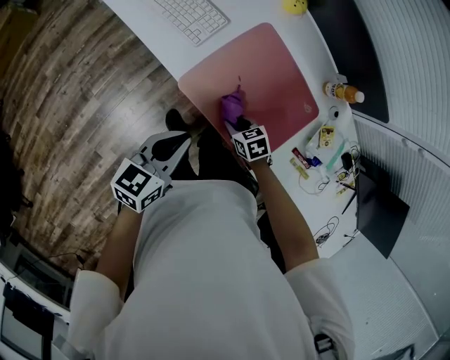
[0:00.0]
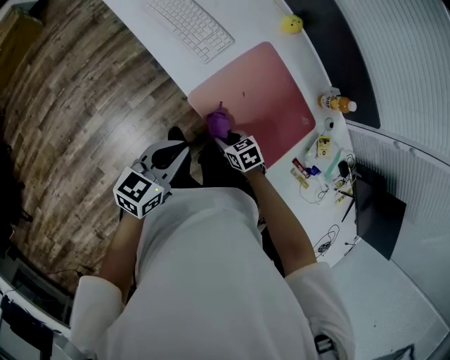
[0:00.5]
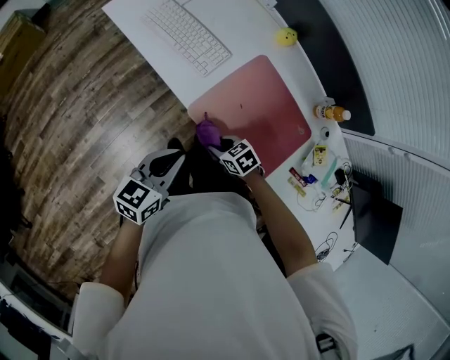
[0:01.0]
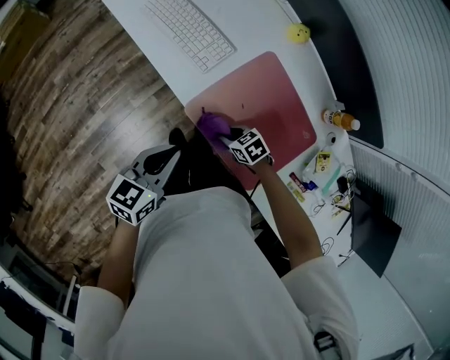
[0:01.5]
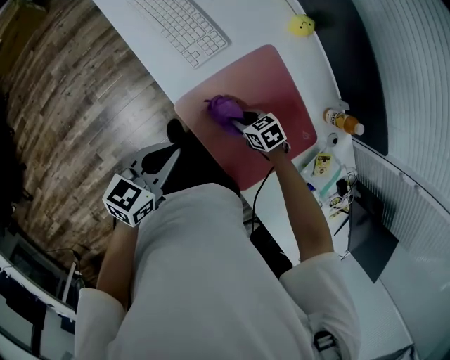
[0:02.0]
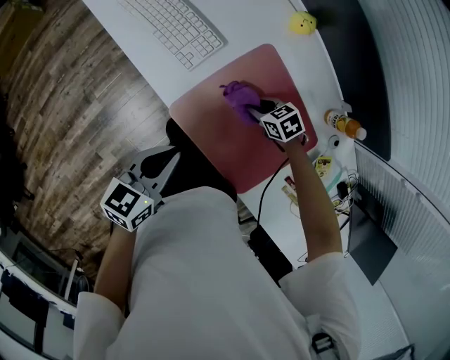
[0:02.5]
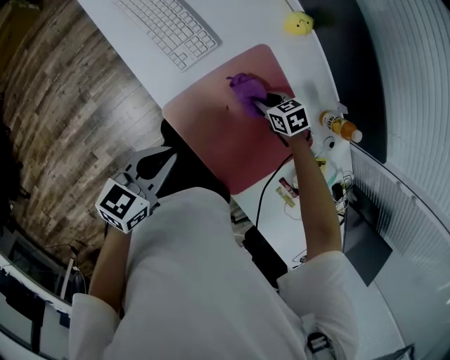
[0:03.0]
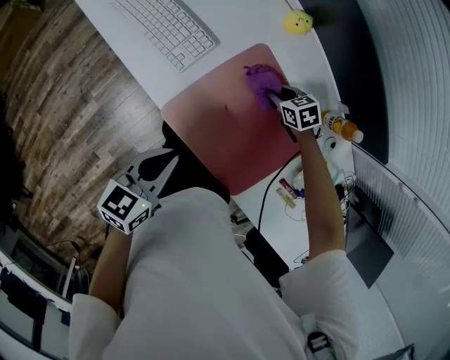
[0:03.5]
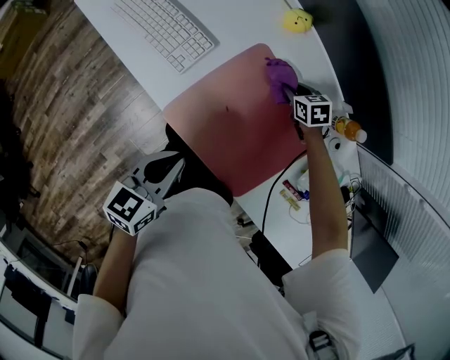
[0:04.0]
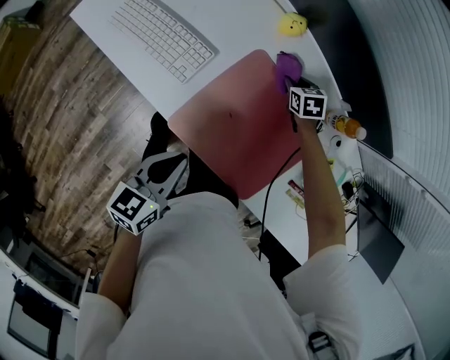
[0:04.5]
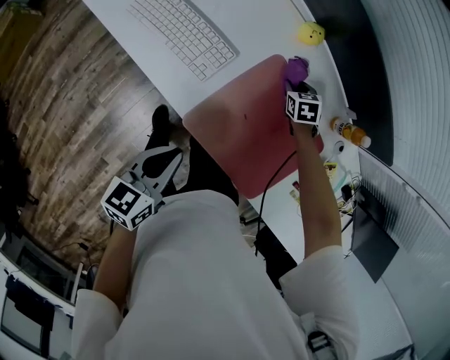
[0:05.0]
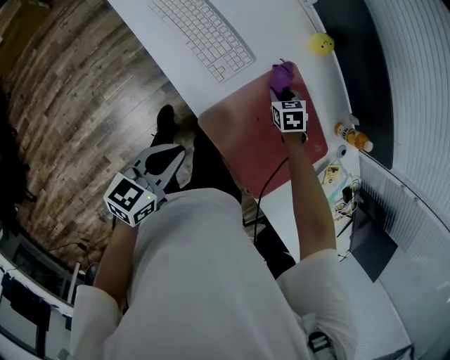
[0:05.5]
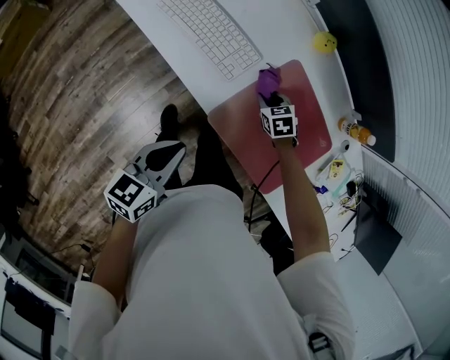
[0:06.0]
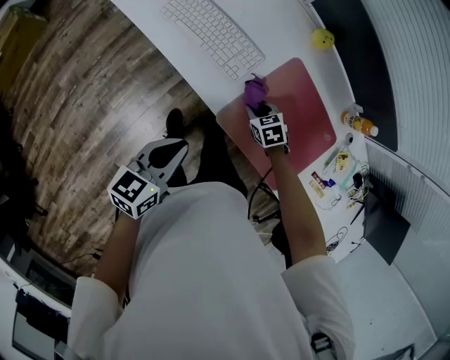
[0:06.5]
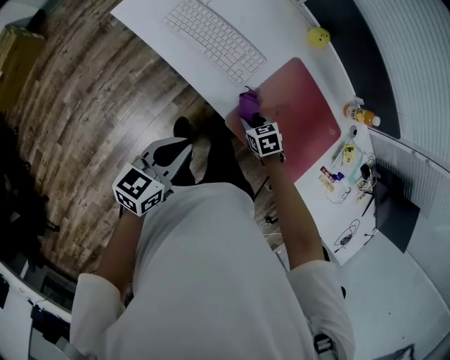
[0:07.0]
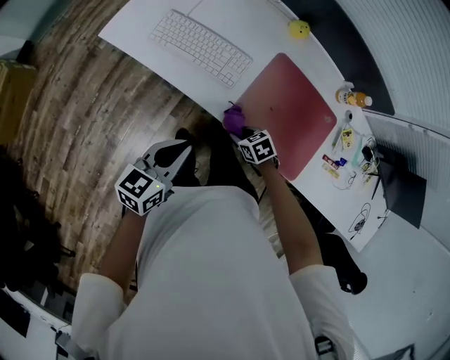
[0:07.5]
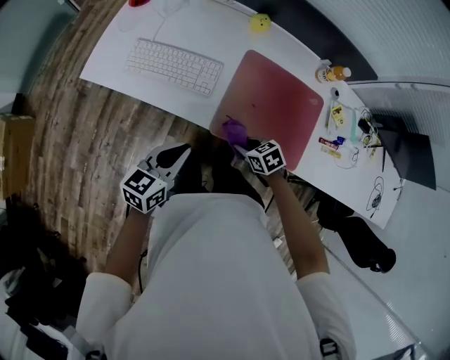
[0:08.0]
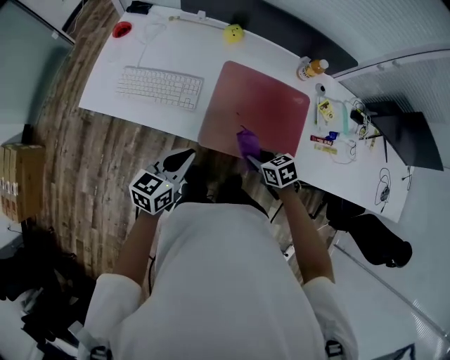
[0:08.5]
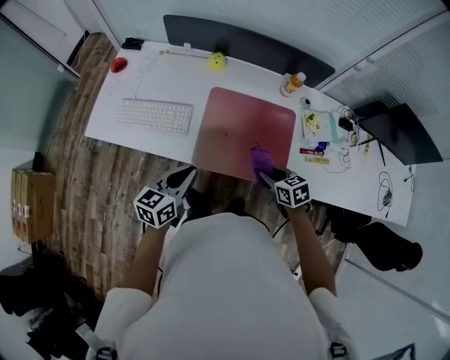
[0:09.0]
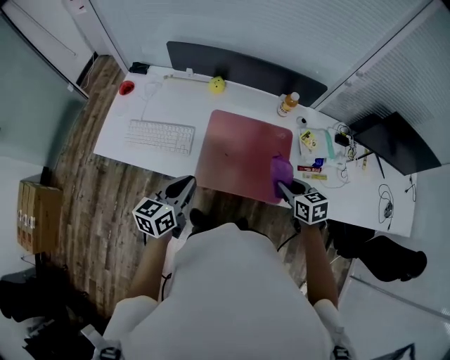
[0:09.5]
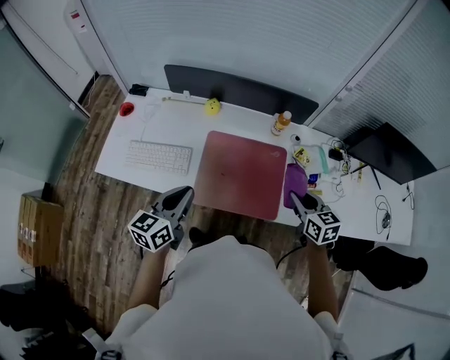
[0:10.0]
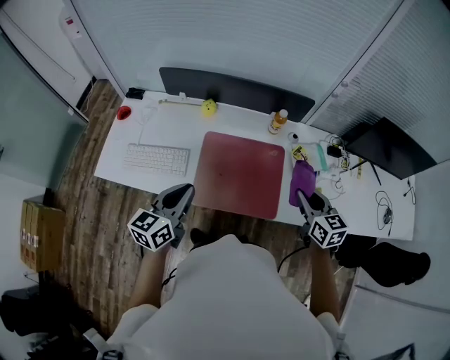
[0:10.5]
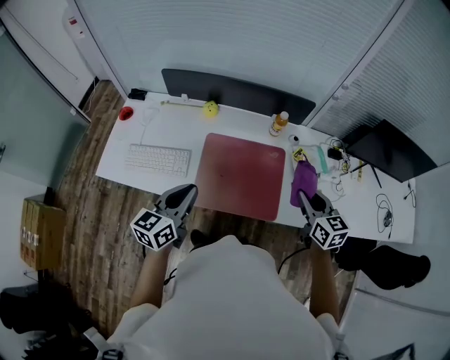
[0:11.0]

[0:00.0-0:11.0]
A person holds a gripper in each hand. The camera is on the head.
0:00.0 to 0:02.0: The left gripper ends up approximately 5 cm from where it was. The right gripper ends up approximately 10 cm from where it was.
0:02.0 to 0:03.5: The right gripper moves some 20 cm.
0:03.5 to 0:05.5: The right gripper changes place by roughly 10 cm. The left gripper ends up about 10 cm from where it was.
0:05.5 to 0:07.5: The right gripper heads backward and to the left, covering approximately 25 cm, and rotates roughly 20 degrees. The left gripper goes approximately 10 cm to the left.
0:07.5 to 0:09.0: The right gripper changes place by some 30 cm, and turns by approximately 30 degrees; the left gripper moves approximately 15 cm.
0:09.0 to 0:11.0: The left gripper shifts roughly 10 cm upward, while the right gripper shifts approximately 25 cm upward and to the right, and turns by about 30 degrees.

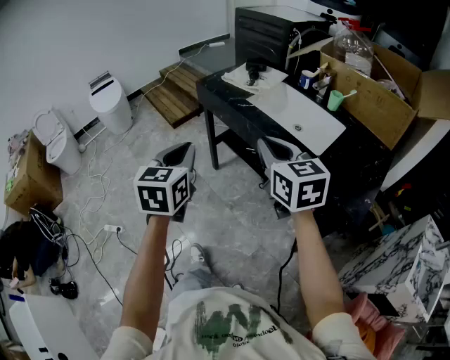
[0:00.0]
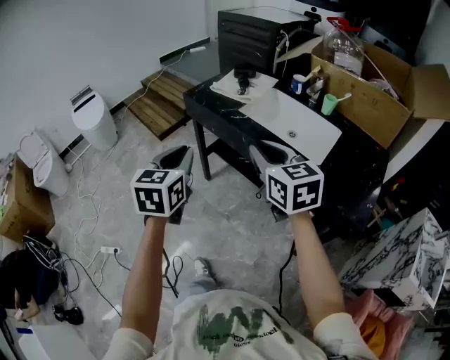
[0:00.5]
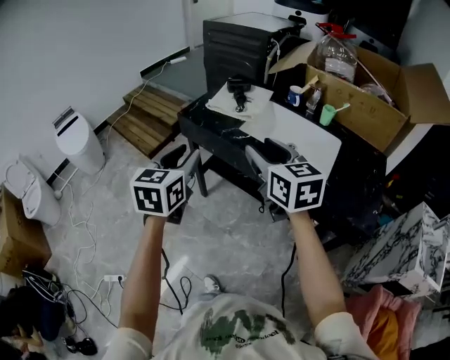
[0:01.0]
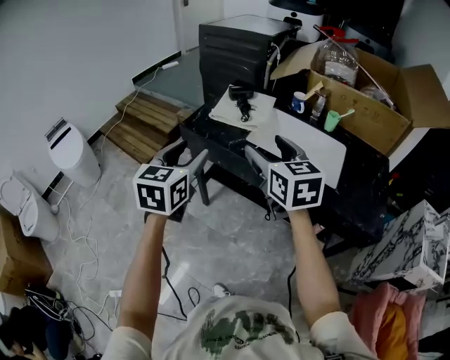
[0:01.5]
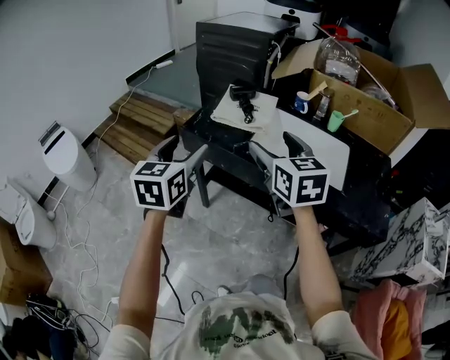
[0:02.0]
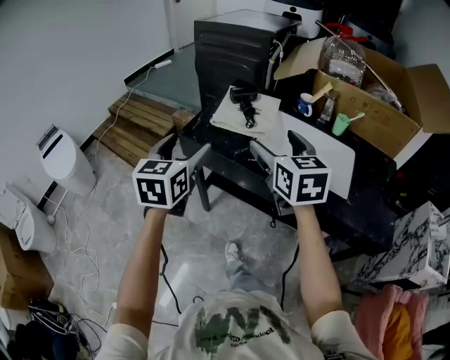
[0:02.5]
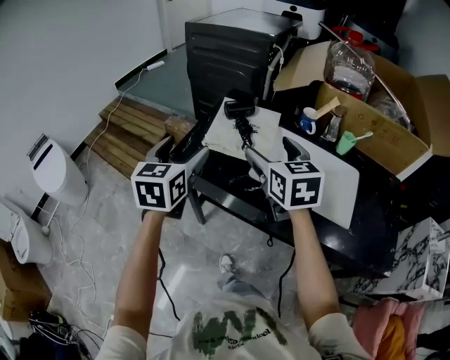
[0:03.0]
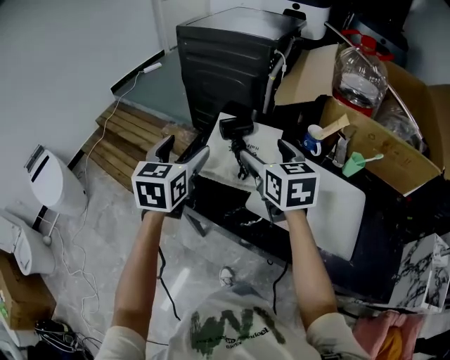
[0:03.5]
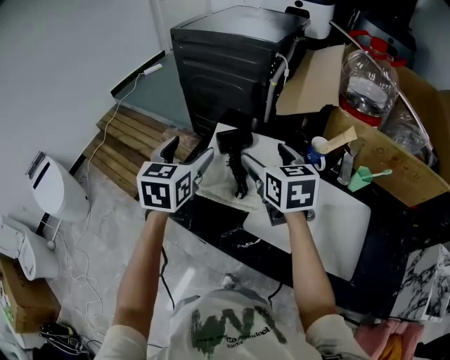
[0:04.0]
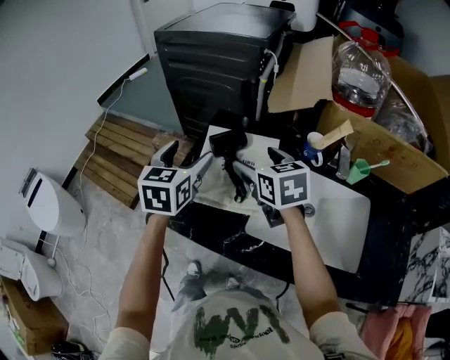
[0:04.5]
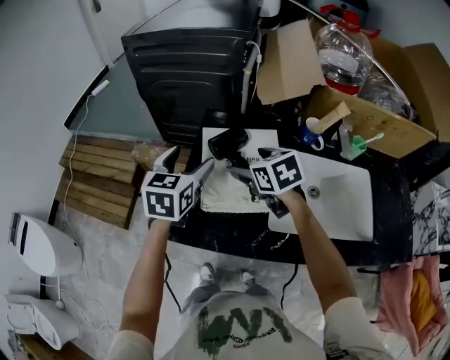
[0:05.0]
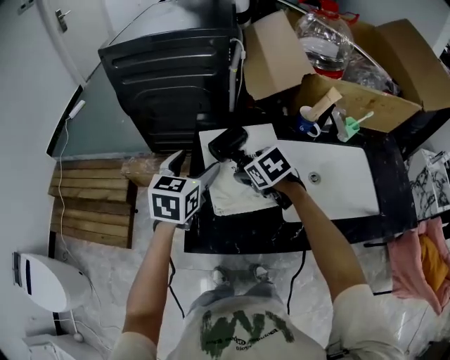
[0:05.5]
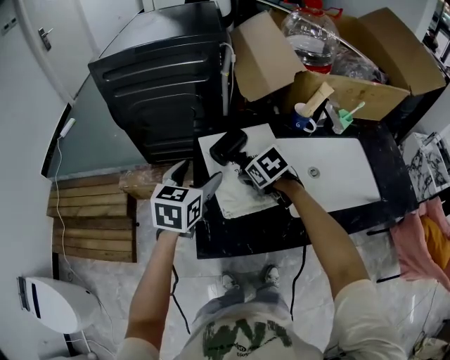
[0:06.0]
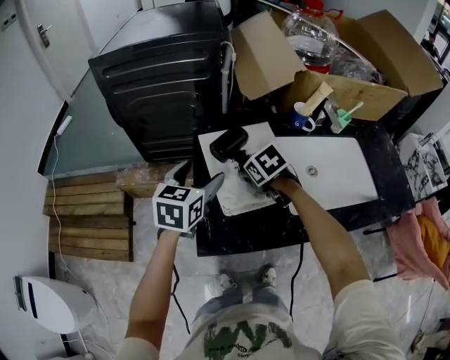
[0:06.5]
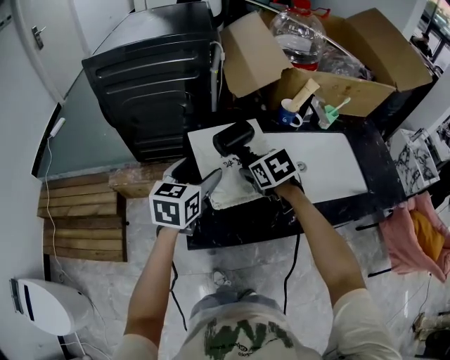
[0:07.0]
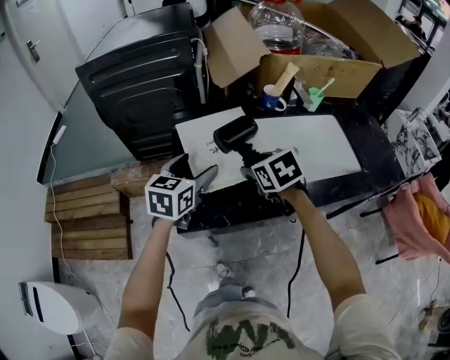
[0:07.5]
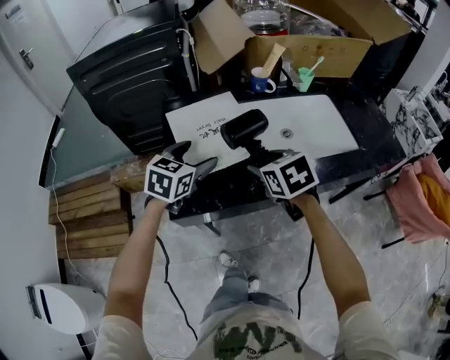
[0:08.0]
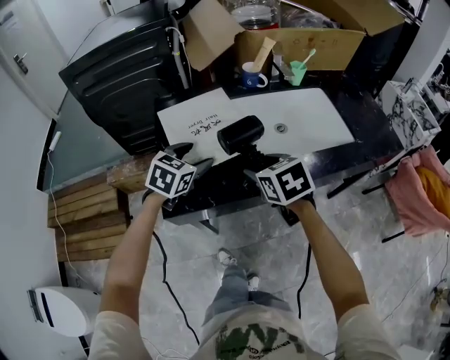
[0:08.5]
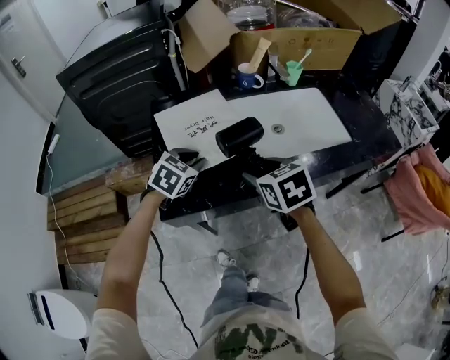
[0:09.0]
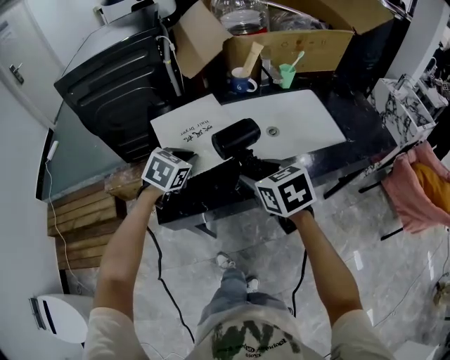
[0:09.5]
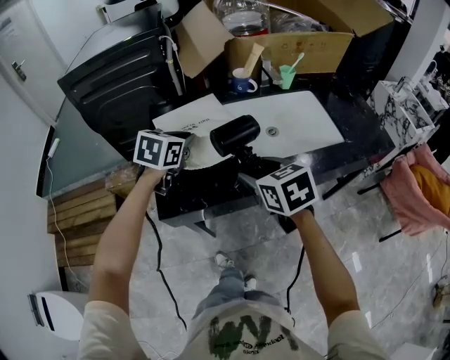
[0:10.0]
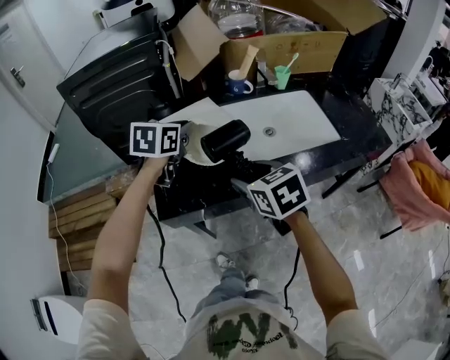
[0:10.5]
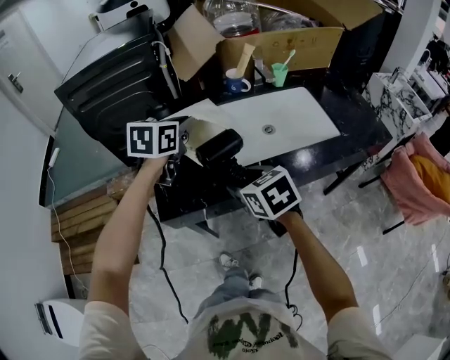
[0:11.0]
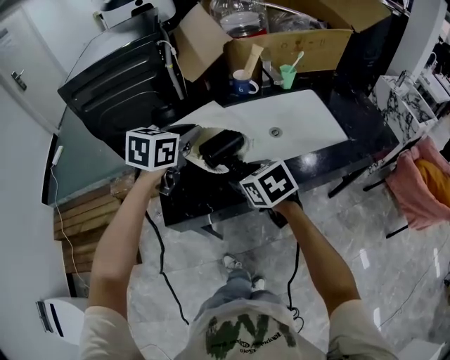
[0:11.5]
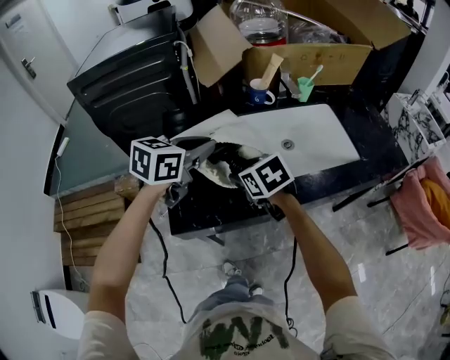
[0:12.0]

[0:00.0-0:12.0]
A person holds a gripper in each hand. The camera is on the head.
0:00.0 to 0:02.0: Both grippers travel together forward and to the left, roughly 30 cm. The left gripper changes its angle by about 20 degrees, and opens its fingers, while the right gripper swivels some 20 degrees, and opens.
0:02.0 to 0:04.0: Both grippers move forward, some 35 cm.
0:04.0 to 0:06.0: The left gripper goes some 10 cm downward, and swivels about 40 degrees. The right gripper goes approximately 20 cm downward, and tips its fingers downward by approximately 40 degrees.
0:06.0 to 0:08.0: The left gripper goes approximately 10 cm to the right and backward. Meanwhile the right gripper shifts about 20 cm backward, to the right and upward, and changes its angle by approximately 20 degrees.
0:08.0 to 0:10.0: The left gripper changes place by roughly 5 cm, and closes. The right gripper moves about 5 cm.
0:10.0 to 0:12.0: The right gripper heads forward, to the left and downward, covering approximately 10 cm. The left gripper shifts approximately 5 cm upward.

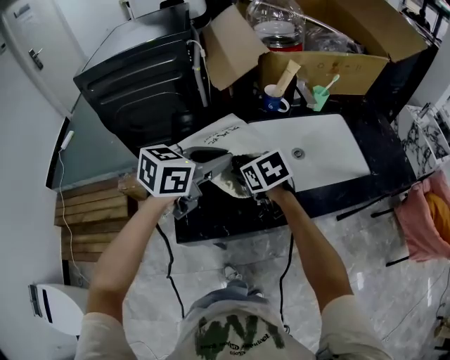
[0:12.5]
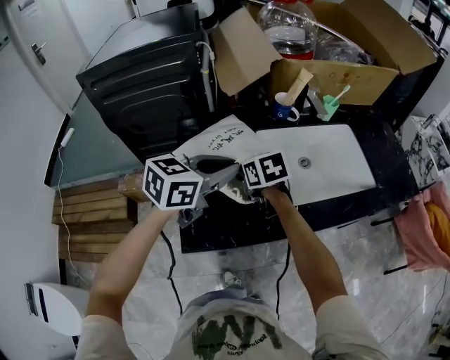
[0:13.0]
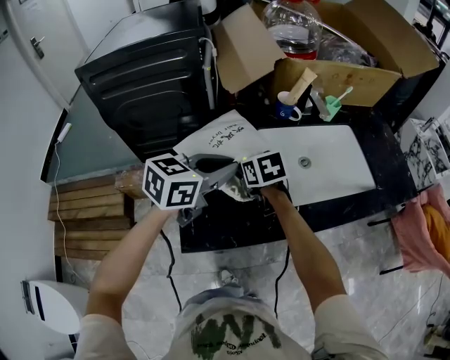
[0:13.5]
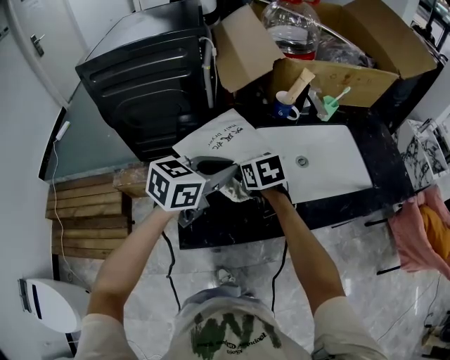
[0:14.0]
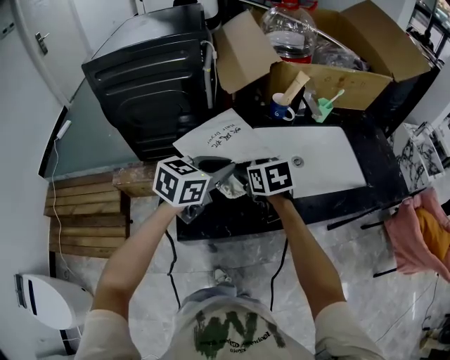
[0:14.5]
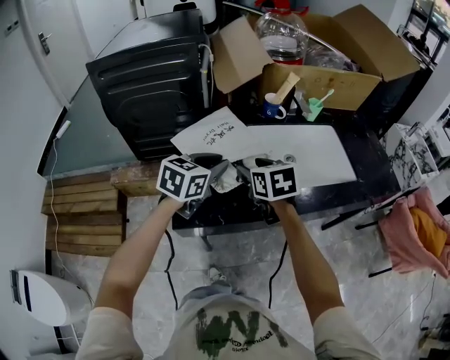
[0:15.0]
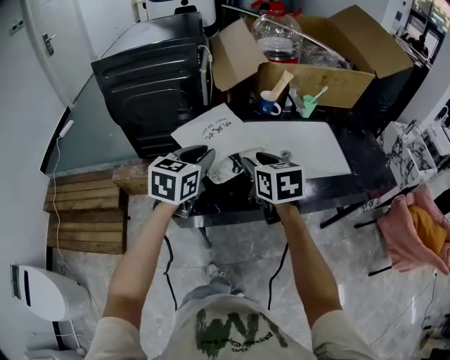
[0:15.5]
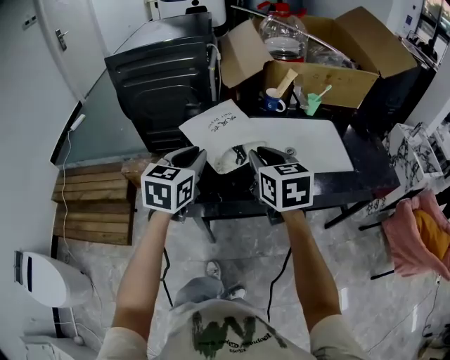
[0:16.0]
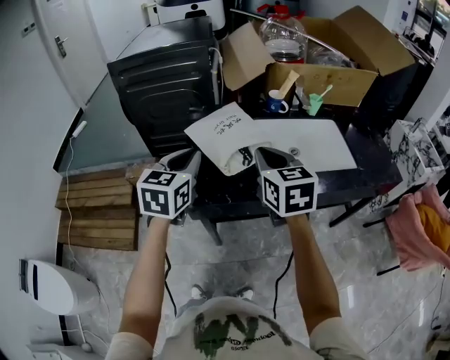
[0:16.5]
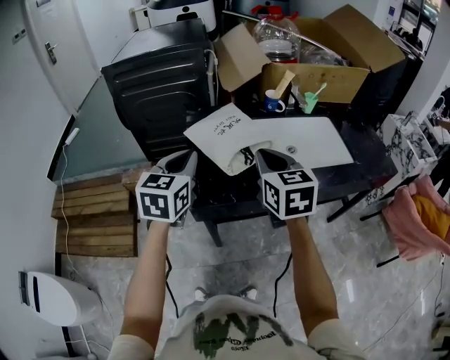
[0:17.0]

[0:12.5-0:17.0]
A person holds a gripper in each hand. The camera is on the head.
0:14.5 to 0:17.0: The left gripper goes roughly 20 cm backward, to the left and upward, and rotates roughly 30 degrees; the right gripper is displaced upward and backward by approximately 20 cm, turns by about 30 degrees, and closes.
